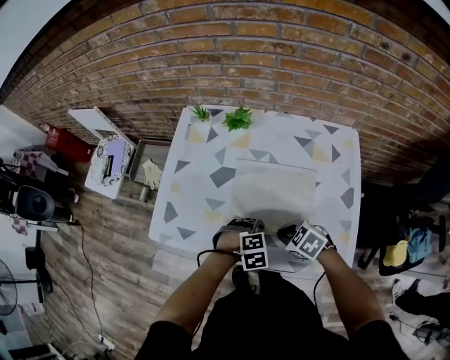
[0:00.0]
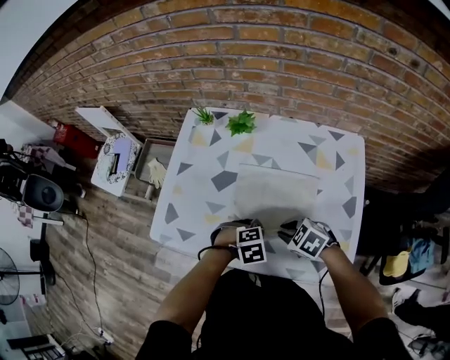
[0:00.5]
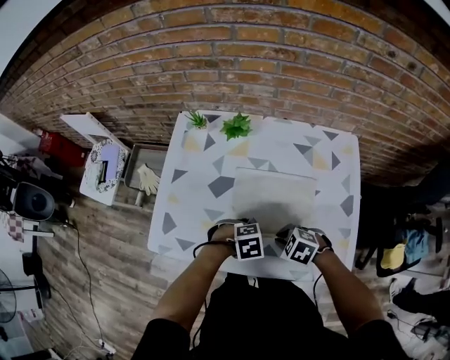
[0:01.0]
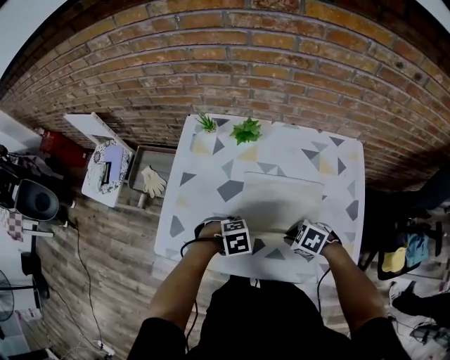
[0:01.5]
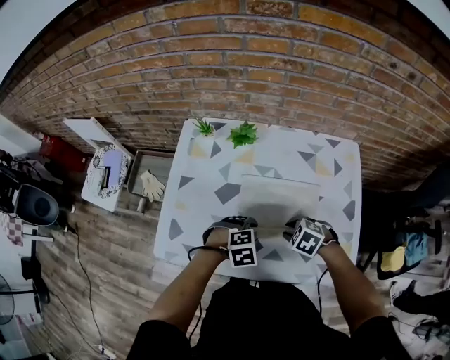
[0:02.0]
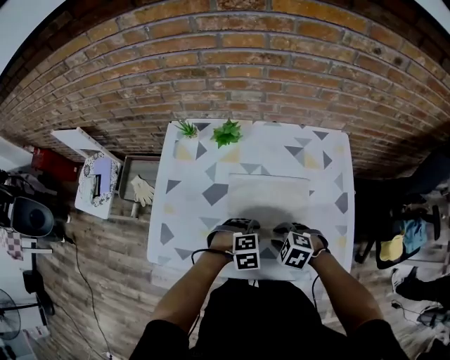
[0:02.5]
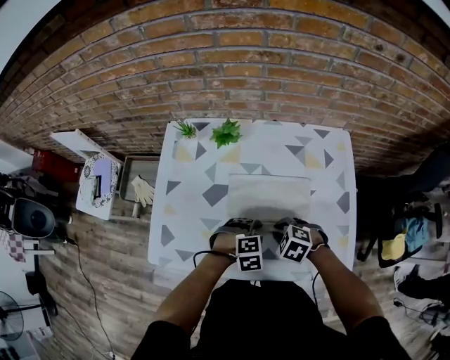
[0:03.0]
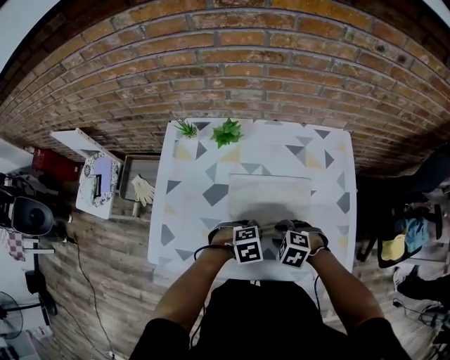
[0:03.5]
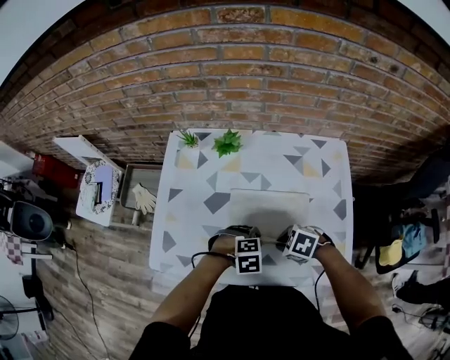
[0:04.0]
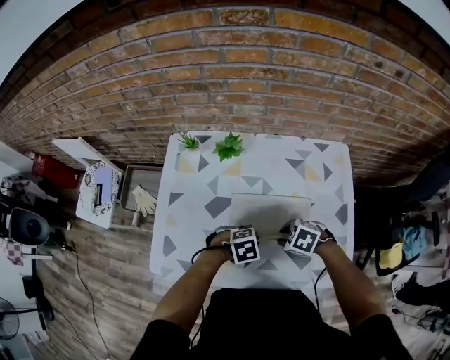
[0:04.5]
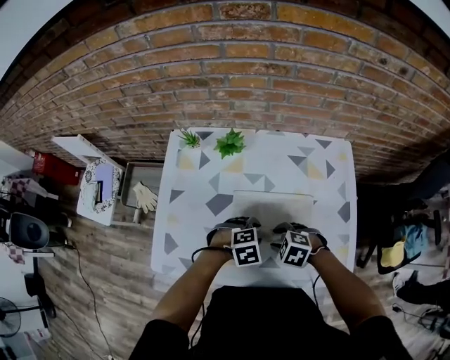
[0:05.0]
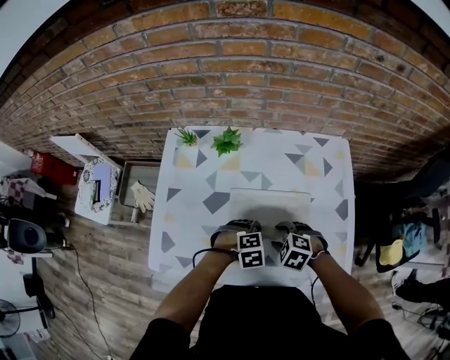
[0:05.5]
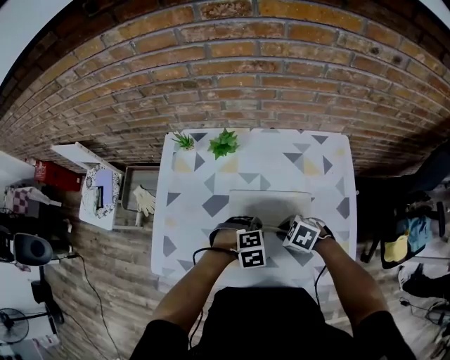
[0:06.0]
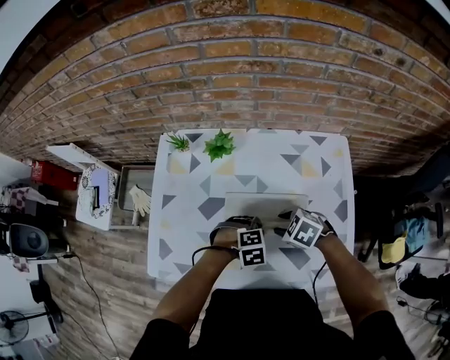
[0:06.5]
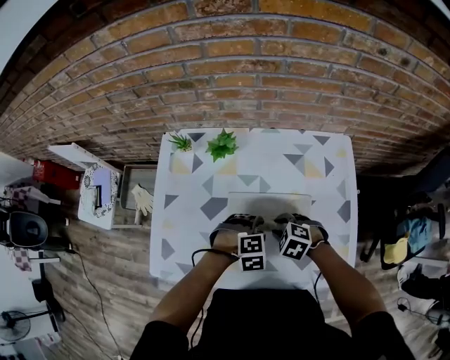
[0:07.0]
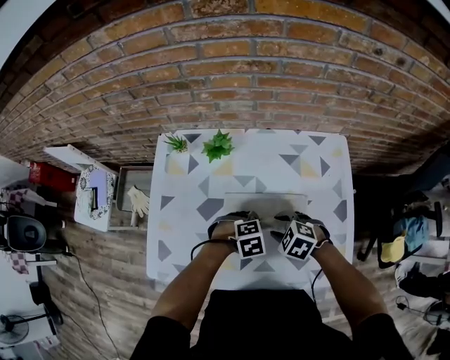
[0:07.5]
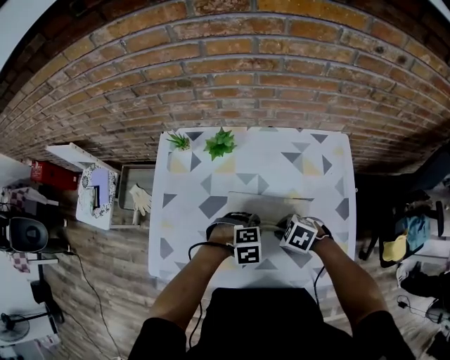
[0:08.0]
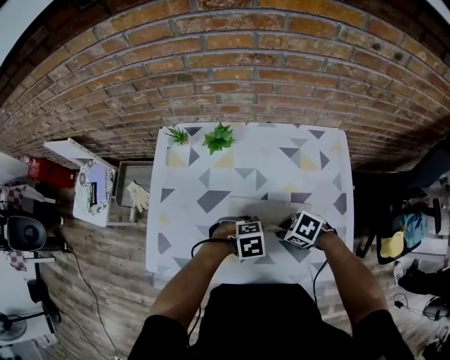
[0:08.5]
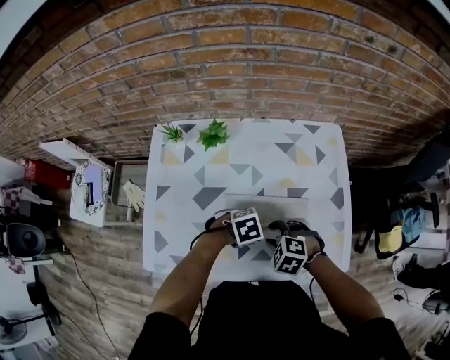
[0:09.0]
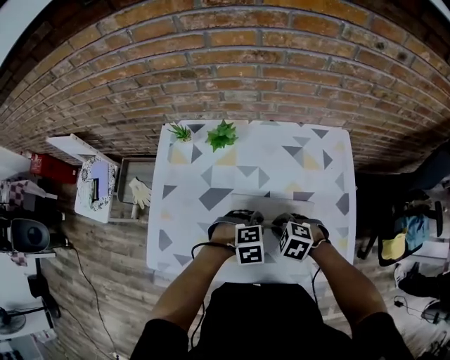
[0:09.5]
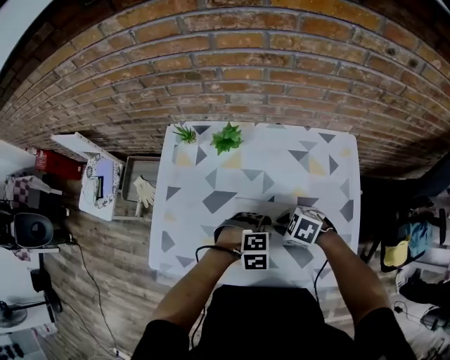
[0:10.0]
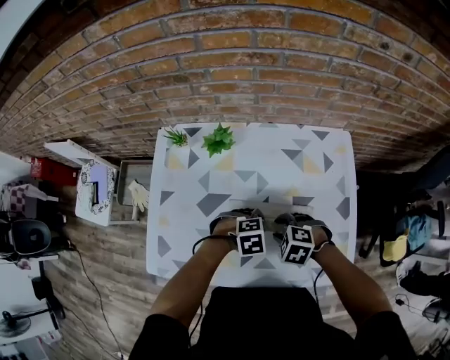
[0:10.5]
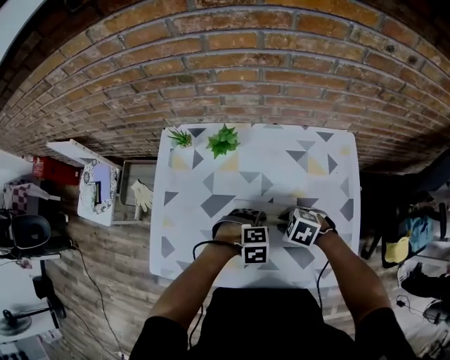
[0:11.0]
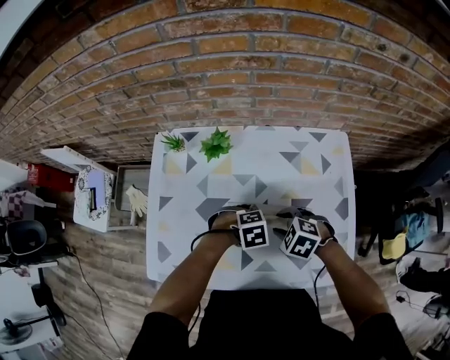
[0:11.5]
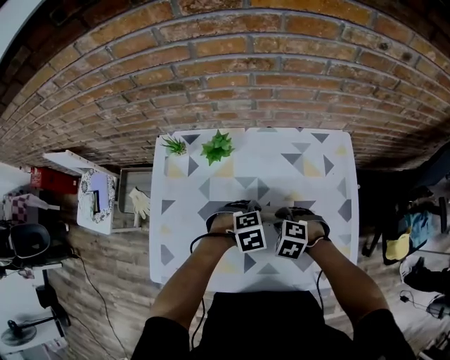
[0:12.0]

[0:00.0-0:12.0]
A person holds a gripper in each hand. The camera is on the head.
0:00.0 to 0:02.0: The right gripper changes place by about 5 cm, and opens, while the left gripper shifts by some 5 cm, and closes and opens again.
0:02.0 to 0:04.0: The left gripper closes, then opens again.
0:04.0 to 0:06.0: The right gripper opens and closes again.
0:06.0 to 0:08.0: The left gripper opens up; the right gripper opens and closes again.
0:08.0 to 0:10.0: The right gripper opens, then closes again.
0:10.0 to 0:12.0: The left gripper changes place by roughly 5 cm; the right gripper changes its angle by some 20 degrees.

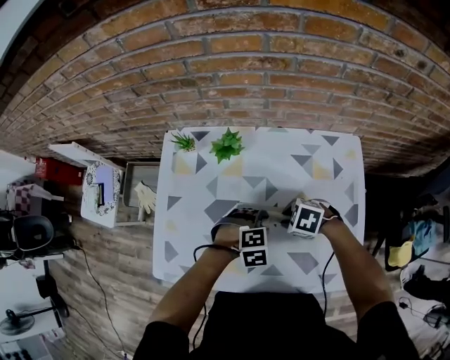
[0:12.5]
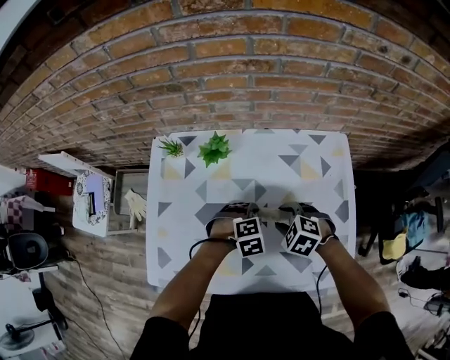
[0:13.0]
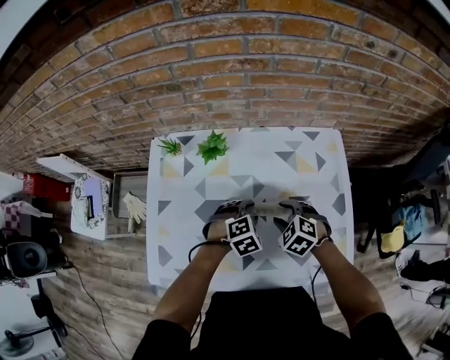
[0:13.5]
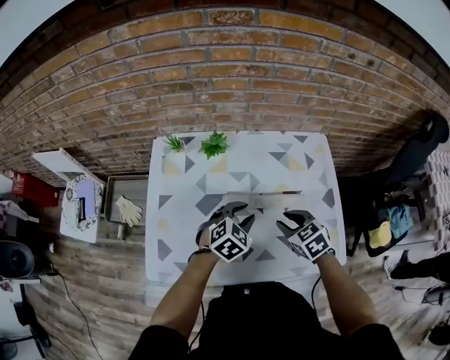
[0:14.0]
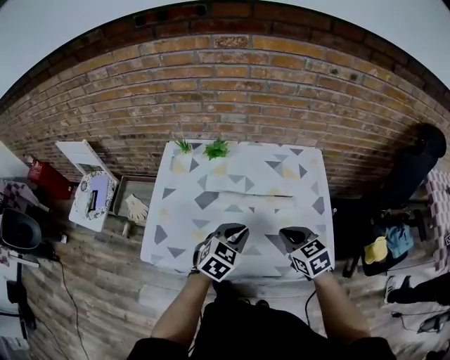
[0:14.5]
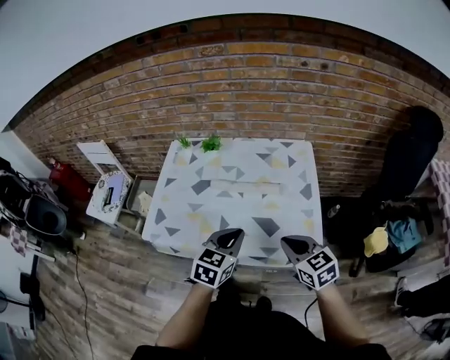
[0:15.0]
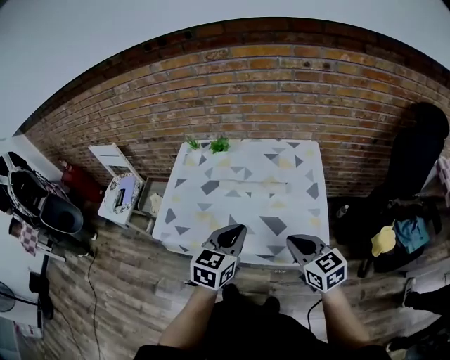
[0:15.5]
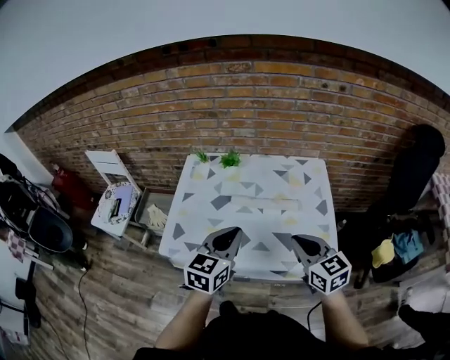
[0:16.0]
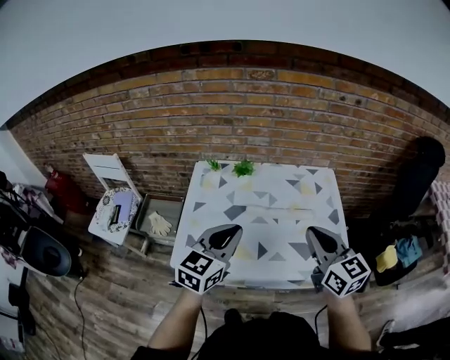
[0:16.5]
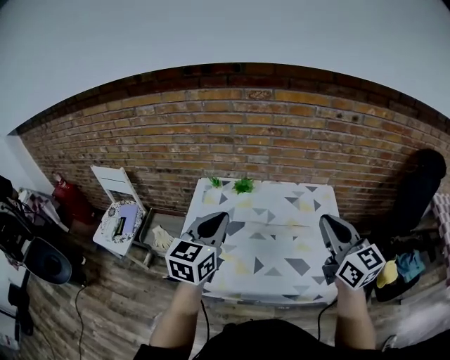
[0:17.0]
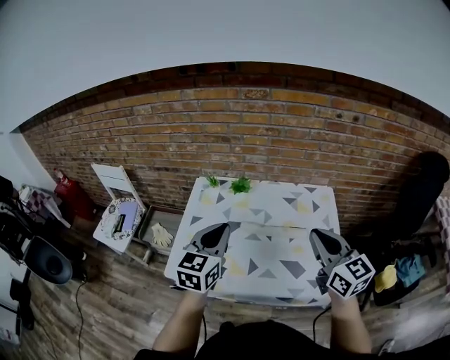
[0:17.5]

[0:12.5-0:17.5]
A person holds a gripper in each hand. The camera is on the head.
0:12.5 to 0:15.0: The right gripper changes place by approximately 30 cm, points its fingers some 40 degrees further upward, and closes its fingers. Meanwhile the left gripper moves roughly 25 cm, tips its fingers upward by roughly 40 degrees, and closes its fingers.
0:15.0 to 0:17.5: The left gripper shifts roughly 25 cm to the left, upward and forward, and changes its angle by approximately 20 degrees, while the right gripper goes approximately 20 cm upward and forward, and turns by some 30 degrees.

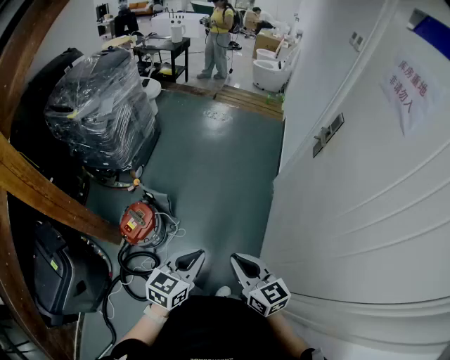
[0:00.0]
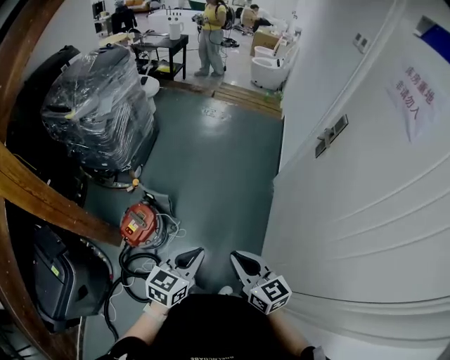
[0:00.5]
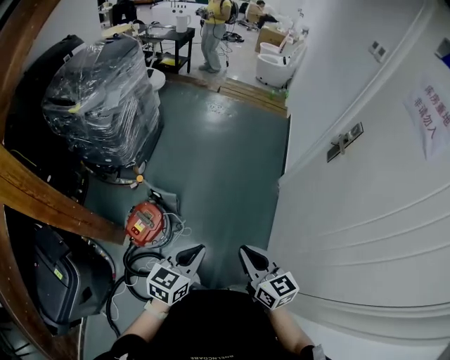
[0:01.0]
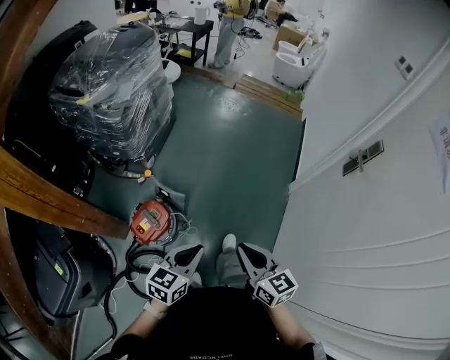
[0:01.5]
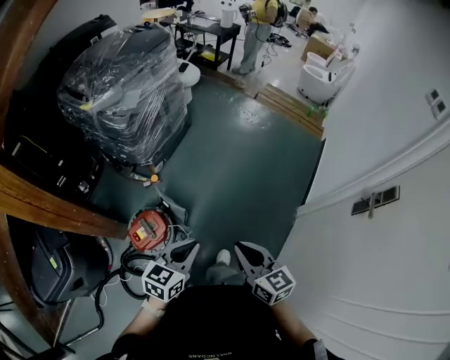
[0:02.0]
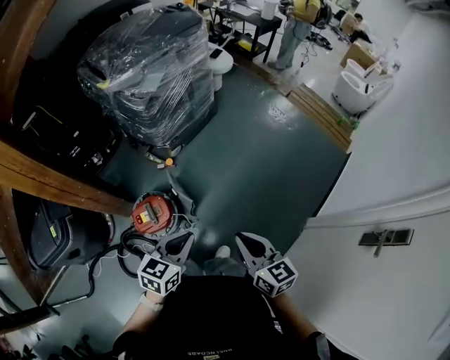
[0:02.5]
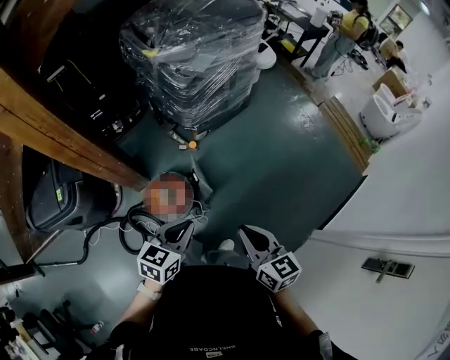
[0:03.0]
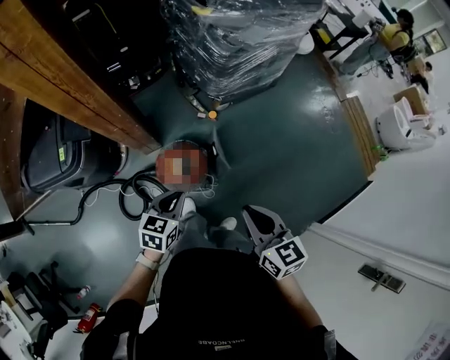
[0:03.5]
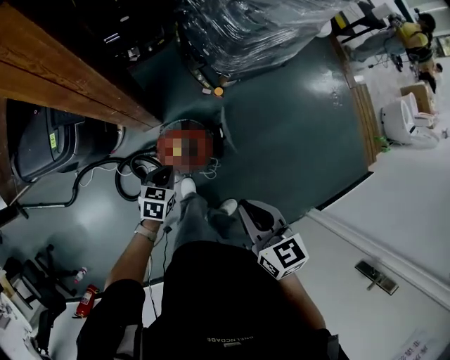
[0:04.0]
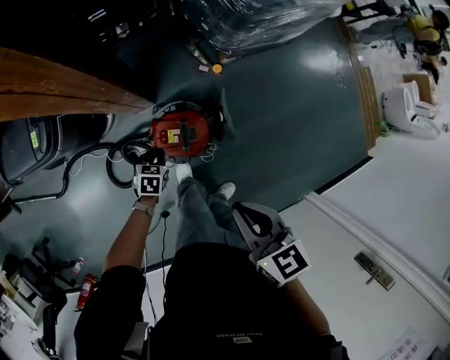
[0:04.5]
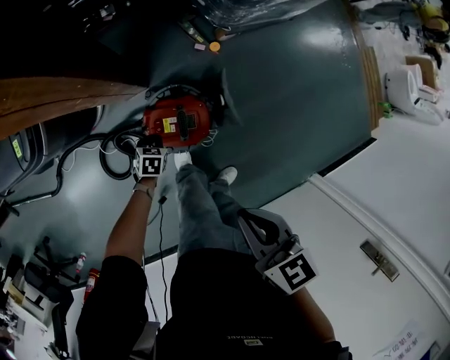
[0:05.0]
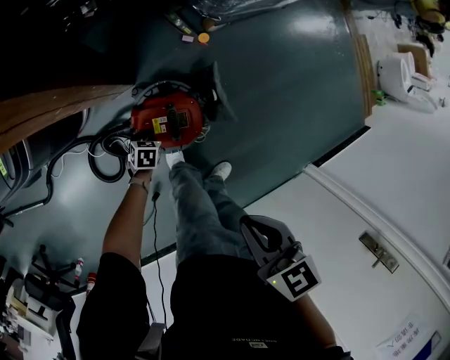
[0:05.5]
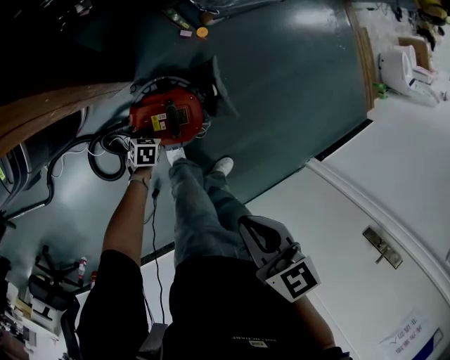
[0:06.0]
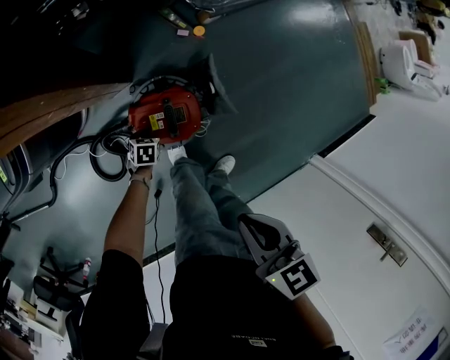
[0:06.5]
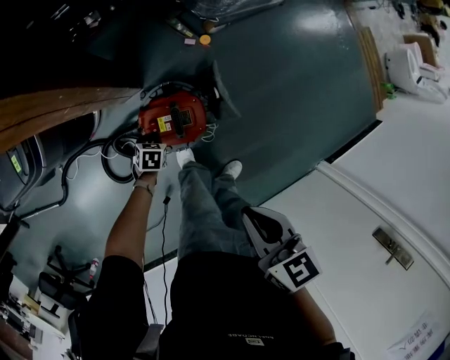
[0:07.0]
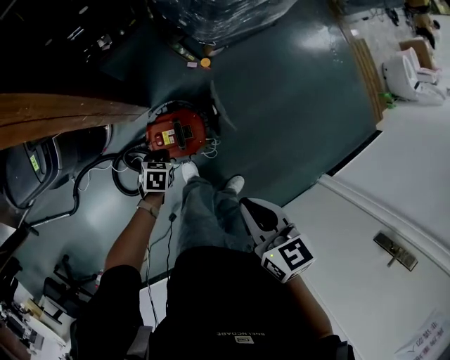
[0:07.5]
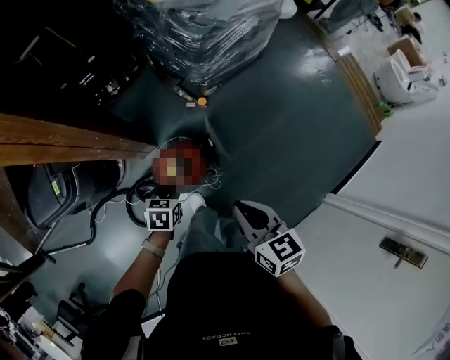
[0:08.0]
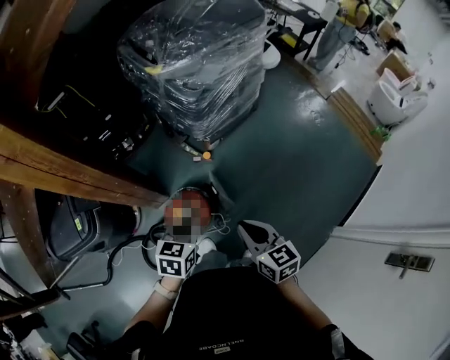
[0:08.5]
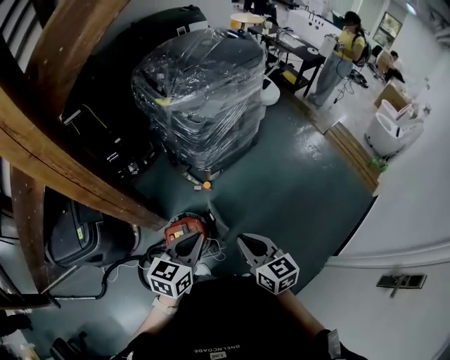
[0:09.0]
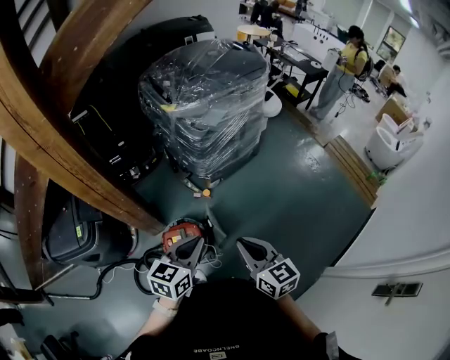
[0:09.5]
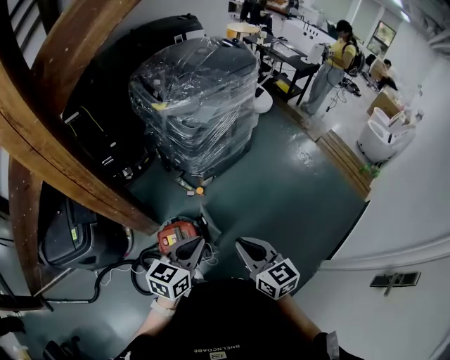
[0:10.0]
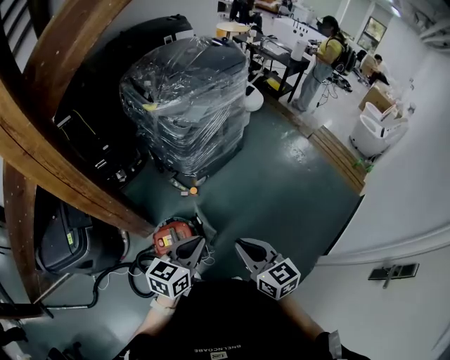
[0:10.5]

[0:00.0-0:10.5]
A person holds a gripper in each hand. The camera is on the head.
0:00.0 to 0:02.0: The right gripper heads forward, covering some 30 cm. The left gripper travels forward and to the left by some 30 cm.
0:02.0 to 0:04.0: The right gripper shifts by approximately 30 cm, and rotates about 40 degrees. The left gripper ends up about 50 cm from where it was, and turns by about 50 degrees.
0:04.0 to 0:06.5: The left gripper heads downward, covering approximately 35 cm, and turns by about 20 degrees, while the right gripper travels downward by about 15 cm.
0:06.5 to 0:08.5: The left gripper travels upward by about 60 cm, and tips its fingers upward by approximately 30 degrees. Meanwhile the right gripper heads upward and to the right, covering about 20 cm.
0:08.5 to 0:10.5: The left gripper moves upward, to the right and backward, approximately 15 cm, and turns by some 20 degrees, while the right gripper moves upward and to the right, roughly 10 cm.
